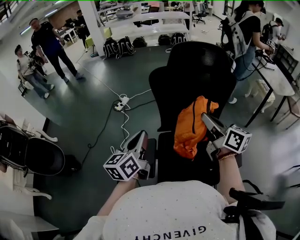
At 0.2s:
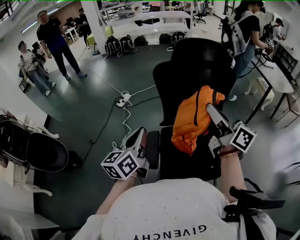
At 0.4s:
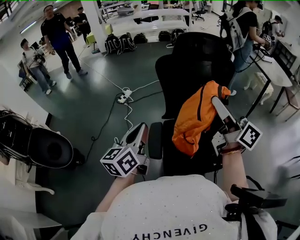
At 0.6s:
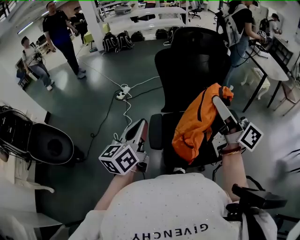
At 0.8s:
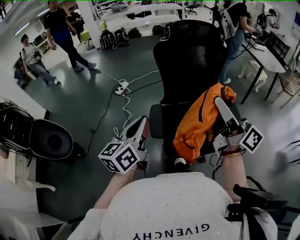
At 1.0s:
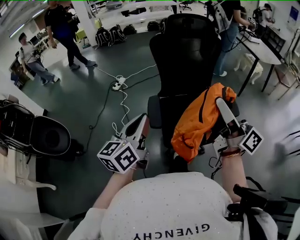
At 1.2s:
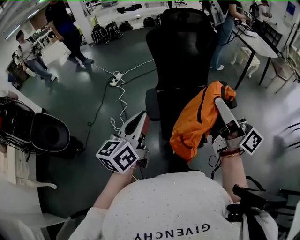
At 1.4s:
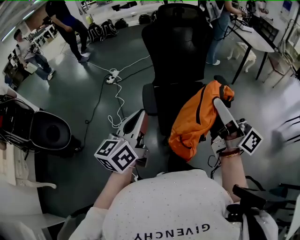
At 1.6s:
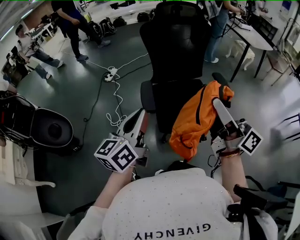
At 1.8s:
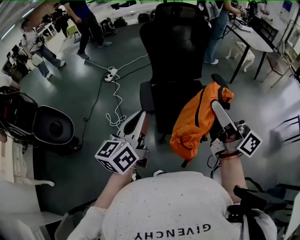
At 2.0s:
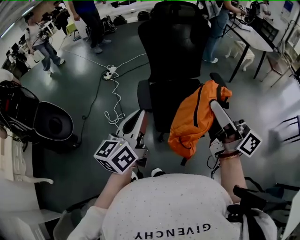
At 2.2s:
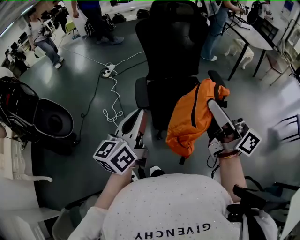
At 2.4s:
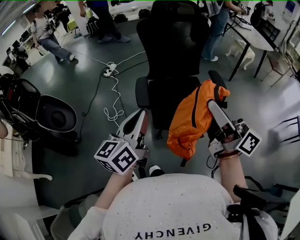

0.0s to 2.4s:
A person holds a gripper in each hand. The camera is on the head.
0.0s to 1.2s: The grippers both shift backward by roughly 30 cm. The right gripper swivels roughly 30 degrees.
1.2s to 2.4s: The right gripper goes approximately 5 cm backward. The left gripper is displaced backward and to the right by roughly 10 cm.

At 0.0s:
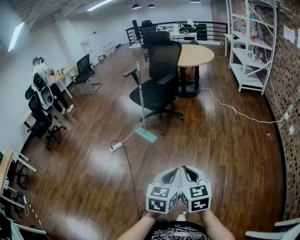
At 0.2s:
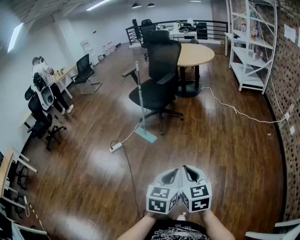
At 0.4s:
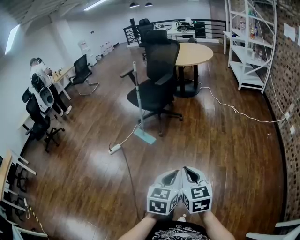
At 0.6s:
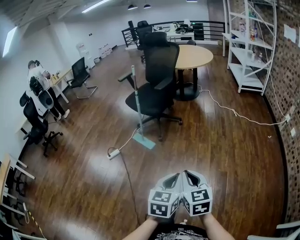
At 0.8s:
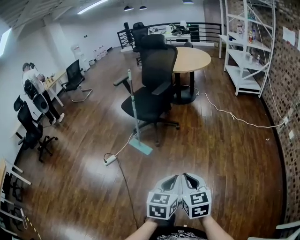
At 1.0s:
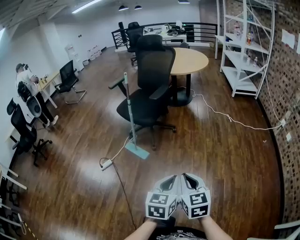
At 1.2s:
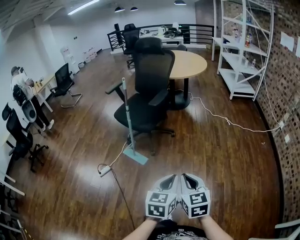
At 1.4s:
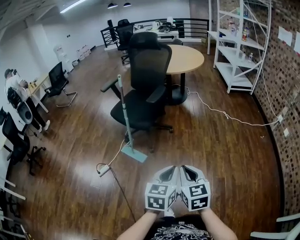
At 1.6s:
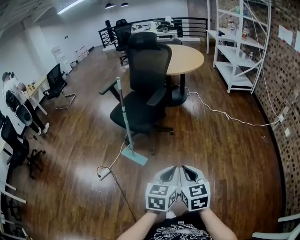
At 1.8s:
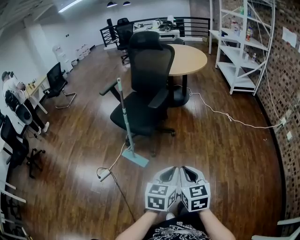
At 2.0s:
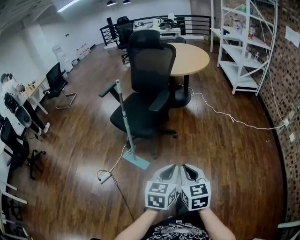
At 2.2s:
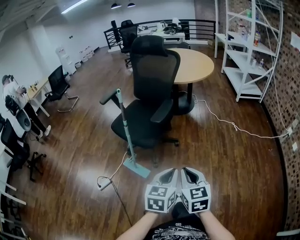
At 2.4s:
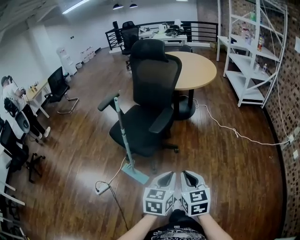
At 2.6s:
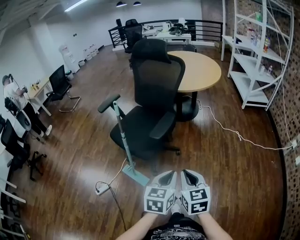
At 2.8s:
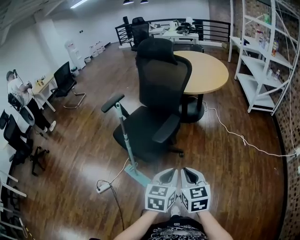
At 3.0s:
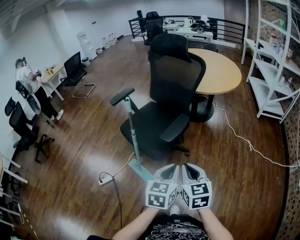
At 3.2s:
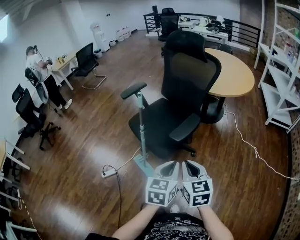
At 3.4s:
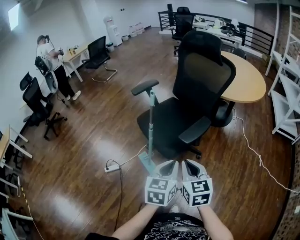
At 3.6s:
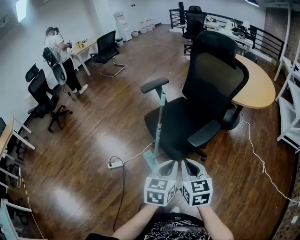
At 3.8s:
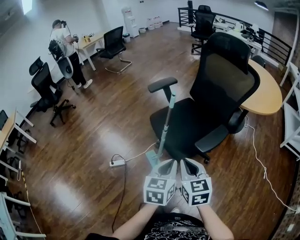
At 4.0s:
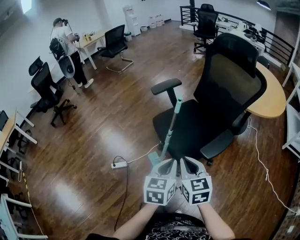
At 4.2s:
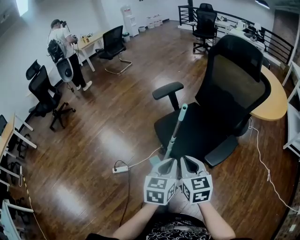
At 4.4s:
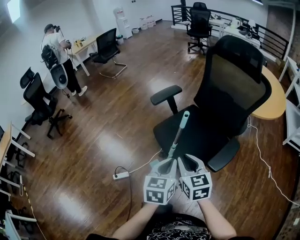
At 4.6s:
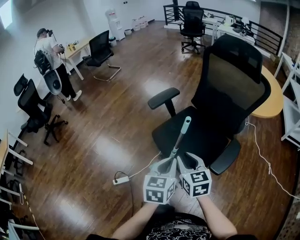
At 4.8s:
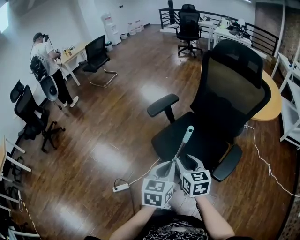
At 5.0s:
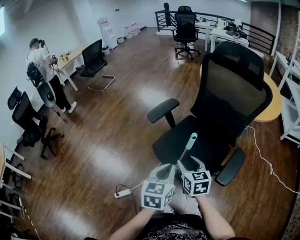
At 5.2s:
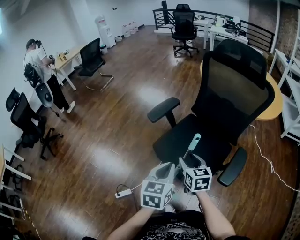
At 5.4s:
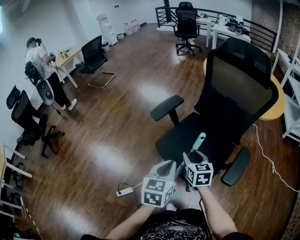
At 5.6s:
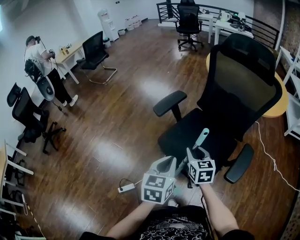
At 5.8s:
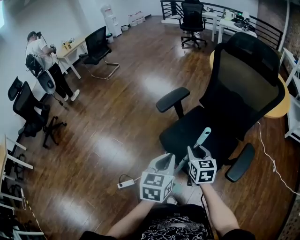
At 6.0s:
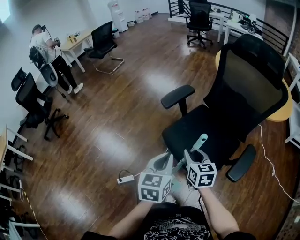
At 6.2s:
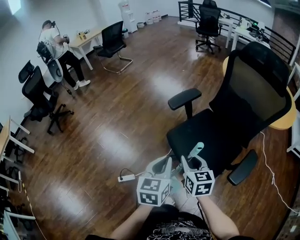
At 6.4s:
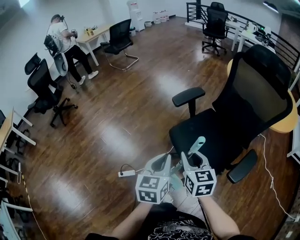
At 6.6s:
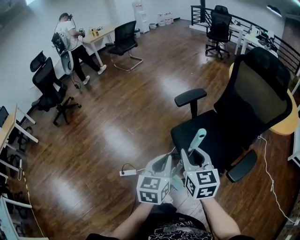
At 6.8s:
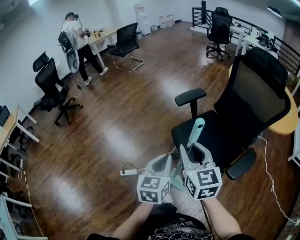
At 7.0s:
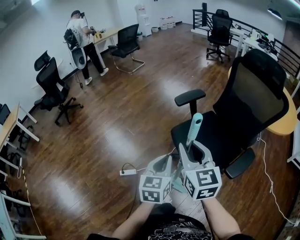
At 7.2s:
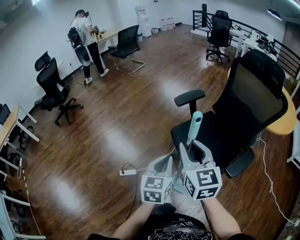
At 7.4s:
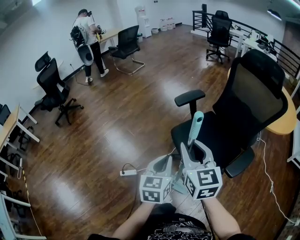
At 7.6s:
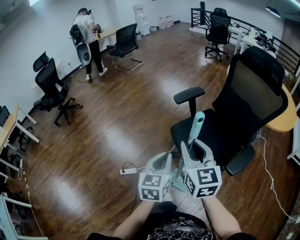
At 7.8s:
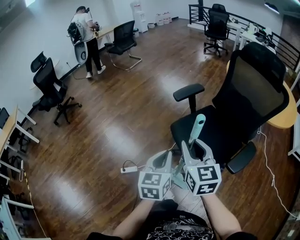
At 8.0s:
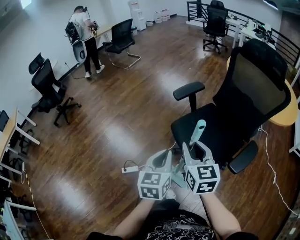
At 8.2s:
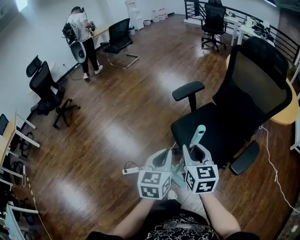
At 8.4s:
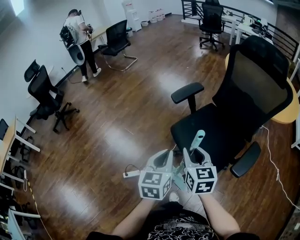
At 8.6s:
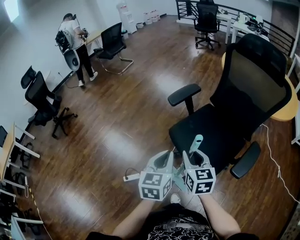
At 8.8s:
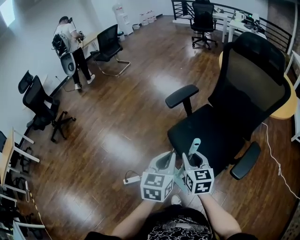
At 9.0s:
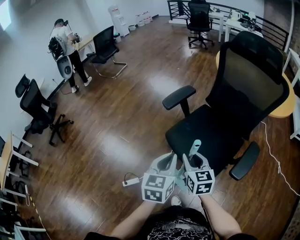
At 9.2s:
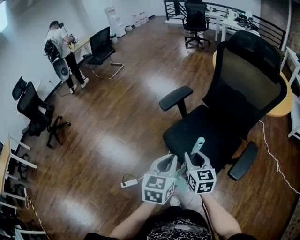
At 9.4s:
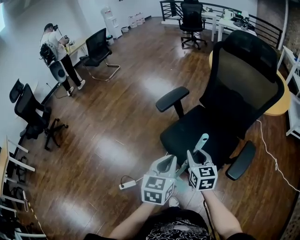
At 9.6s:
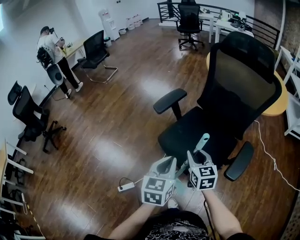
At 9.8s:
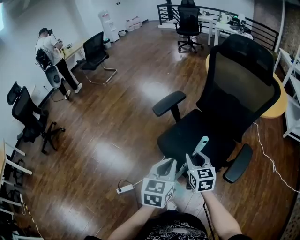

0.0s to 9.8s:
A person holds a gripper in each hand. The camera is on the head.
0.0s to 1.4s: Both grippers move forward, some 25 cm.
1.4s to 2.8s: The grippers both shift forward by roughly 30 cm.
2.8s to 4.2s: The left gripper shifts by some 25 cm, and turns by roughly 30 degrees, while the right gripper shifts by approximately 30 cm, and swivels about 30 degrees.
4.2s to 5.6s: The left gripper is displaced forward and to the left by about 15 cm, while the right gripper moves forward and downward, some 20 cm, and opens its fingers.
5.6s to 7.0s: The left gripper heads backward and to the left, covering about 10 cm, and swivels roughly 20 degrees. Meanwhile the right gripper goes approximately 25 cm upward, backward and to the left, and changes its angle by approximately 30 degrees.
7.0s to 8.4s: The right gripper is displaced downward by approximately 10 cm. The left gripper moves forward, about 5 cm.
8.4s to 9.8s: The left gripper shifts approximately 5 cm to the right, while the right gripper heads downward, to the right and forward, covering some 10 cm.

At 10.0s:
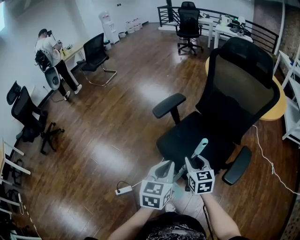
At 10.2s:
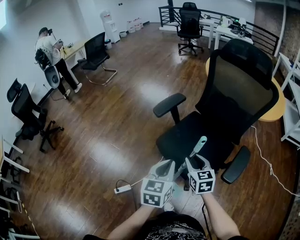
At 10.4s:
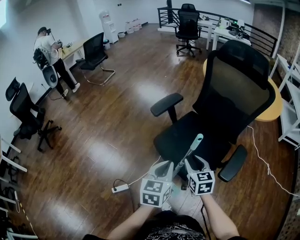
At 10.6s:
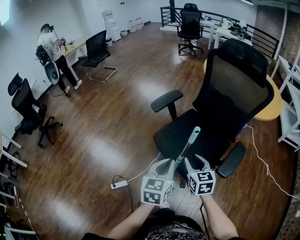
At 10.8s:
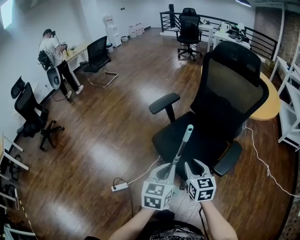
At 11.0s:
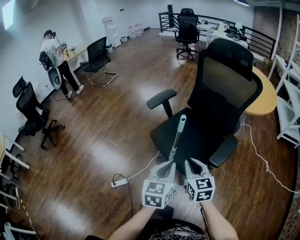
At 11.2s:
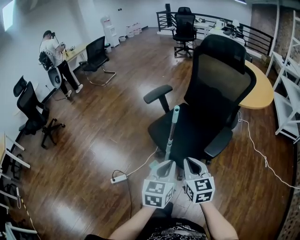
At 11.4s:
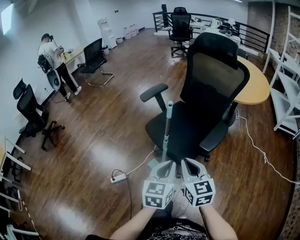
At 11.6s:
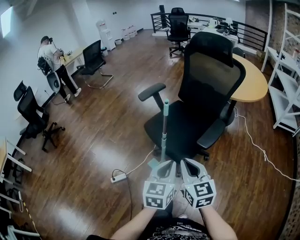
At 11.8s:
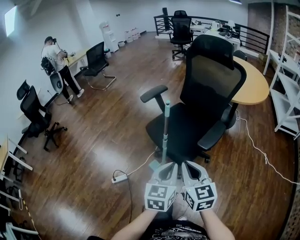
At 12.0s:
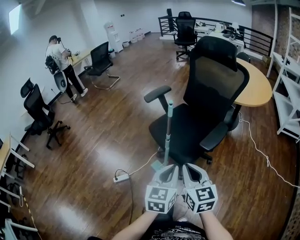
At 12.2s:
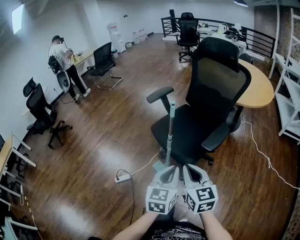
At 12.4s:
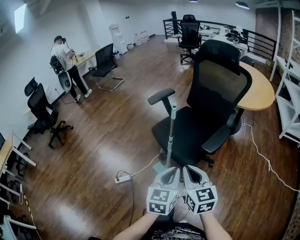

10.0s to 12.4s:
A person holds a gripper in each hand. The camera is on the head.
10.0s to 11.2s: The left gripper moves backward and to the right, about 15 cm. Meanwhile the right gripper travels backward and upward by about 20 cm, and closes.
11.2s to 12.4s: Both grippers move backward, approximately 10 cm.

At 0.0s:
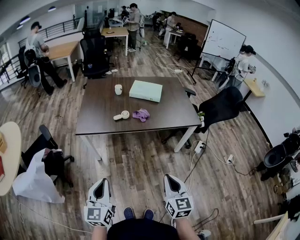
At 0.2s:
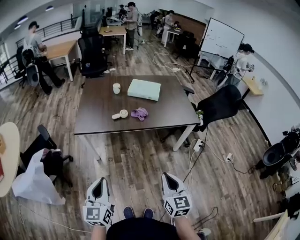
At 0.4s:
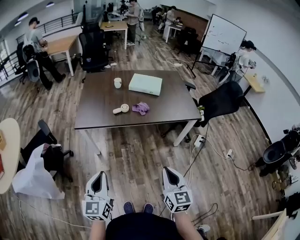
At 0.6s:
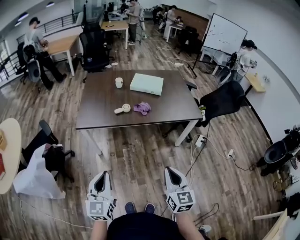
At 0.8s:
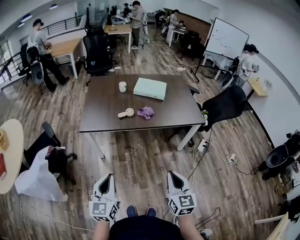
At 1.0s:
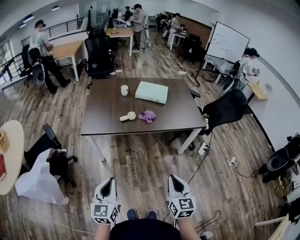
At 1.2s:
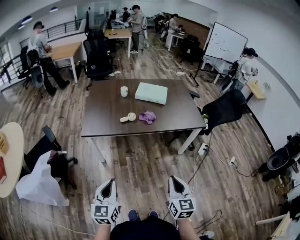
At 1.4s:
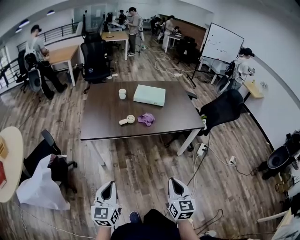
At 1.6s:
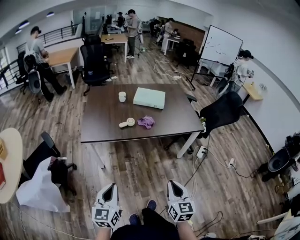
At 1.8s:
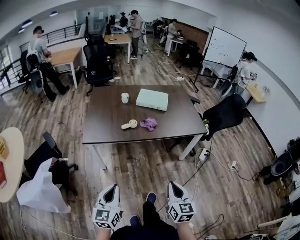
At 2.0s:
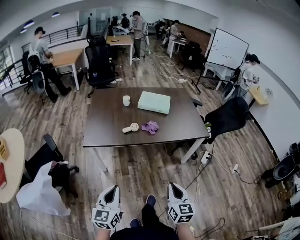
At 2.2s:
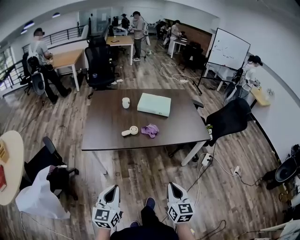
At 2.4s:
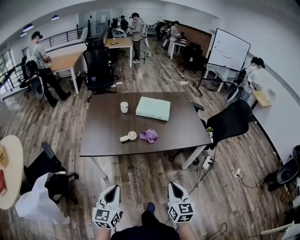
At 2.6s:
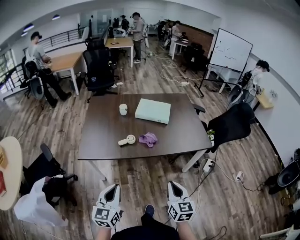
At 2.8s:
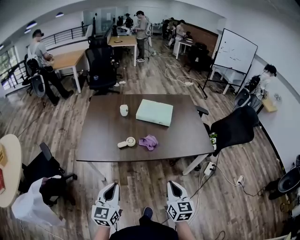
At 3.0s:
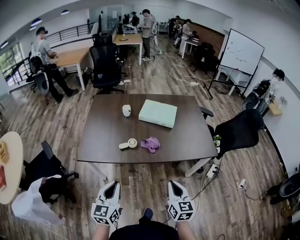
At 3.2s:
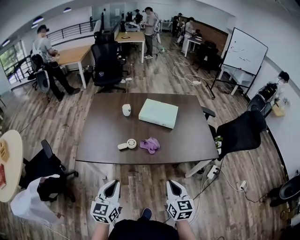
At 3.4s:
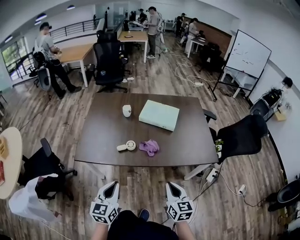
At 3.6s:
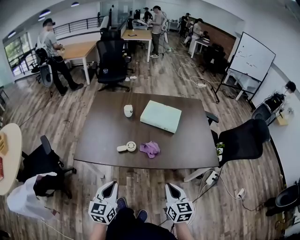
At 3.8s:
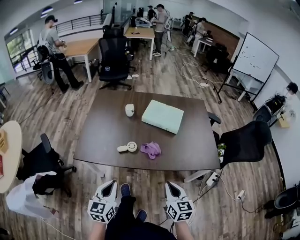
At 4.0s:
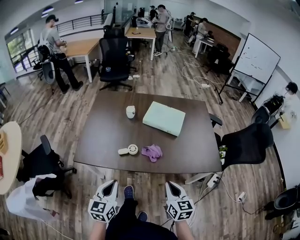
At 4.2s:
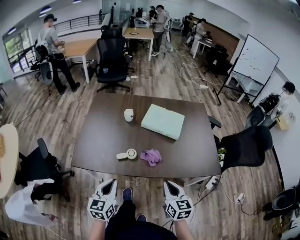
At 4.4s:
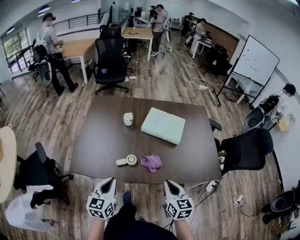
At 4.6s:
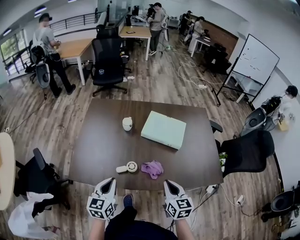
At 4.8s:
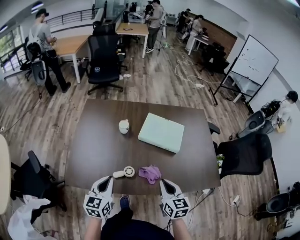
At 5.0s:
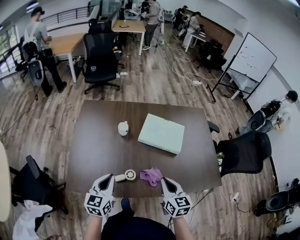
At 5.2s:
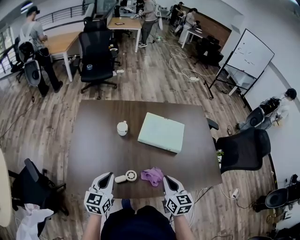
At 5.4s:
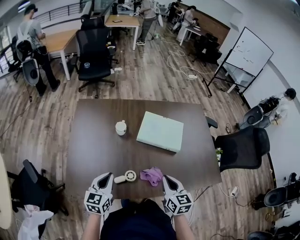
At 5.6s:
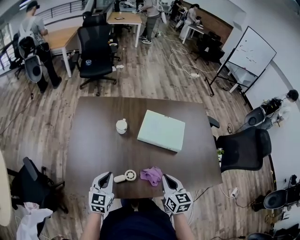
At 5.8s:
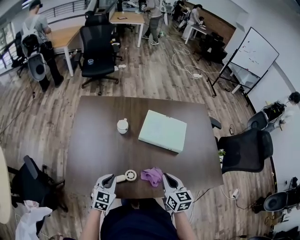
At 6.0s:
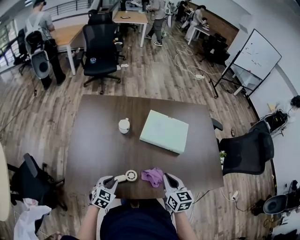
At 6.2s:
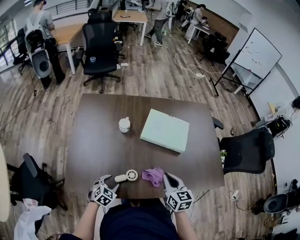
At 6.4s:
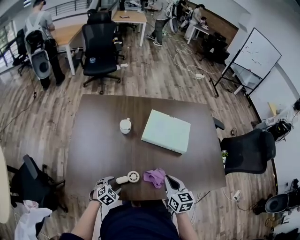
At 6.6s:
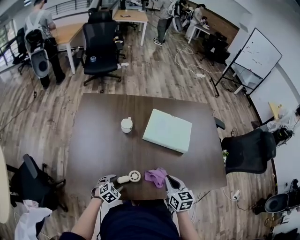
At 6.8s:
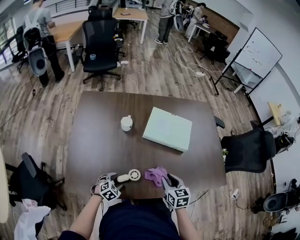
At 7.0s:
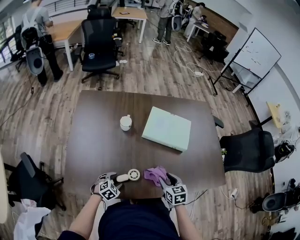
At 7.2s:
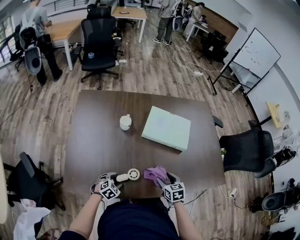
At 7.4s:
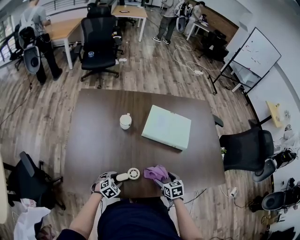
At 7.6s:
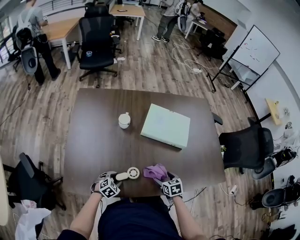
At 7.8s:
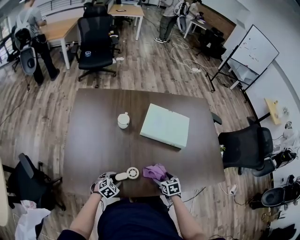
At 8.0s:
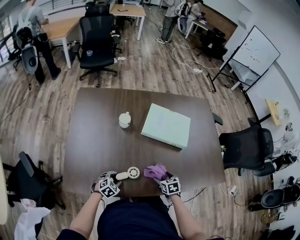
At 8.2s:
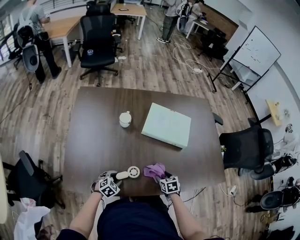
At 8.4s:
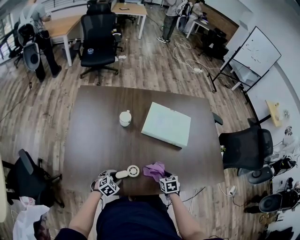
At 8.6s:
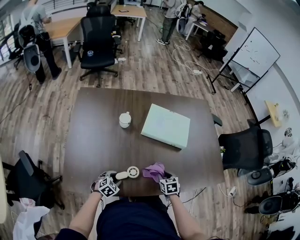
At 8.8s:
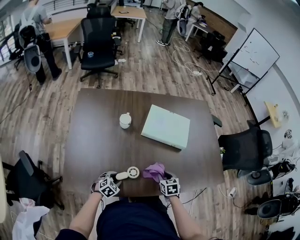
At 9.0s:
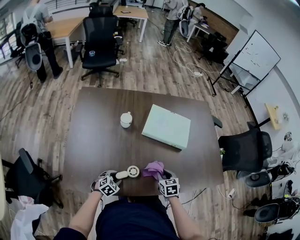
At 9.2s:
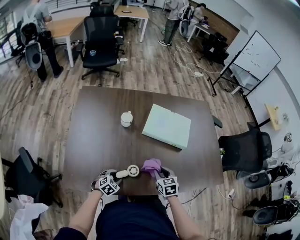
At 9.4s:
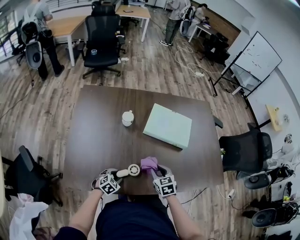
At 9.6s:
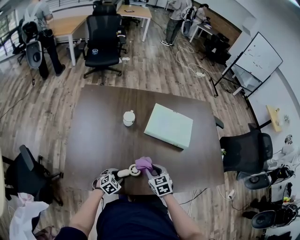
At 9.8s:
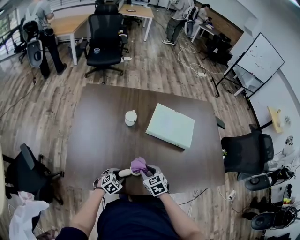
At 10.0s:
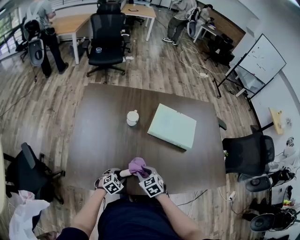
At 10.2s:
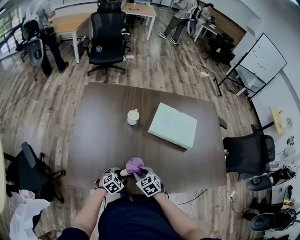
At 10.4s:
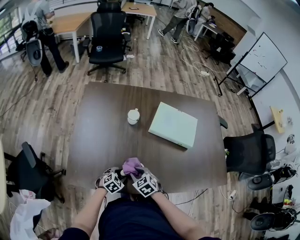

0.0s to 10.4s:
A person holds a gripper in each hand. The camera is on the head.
0.0s to 1.4s: The left gripper changes place by some 5 cm.
1.4s to 3.0s: The grippers both shift forward by about 25 cm.
3.0s to 4.4s: Both grippers travel together forward, about 20 cm.
4.4s to 6.0s: The left gripper goes approximately 25 cm downward and forward, and turns by approximately 40 degrees. Meanwhile the right gripper is displaced forward by approximately 20 cm.
6.0s to 7.4s: The grippers both shift downward by approximately 15 cm. The right gripper swivels some 30 degrees, and opens up. Meanwhile the left gripper changes its angle by roughly 30 degrees, and opens.
7.4s to 9.0s: The right gripper closes.
9.0s to 10.4s: The right gripper travels to the left by roughly 20 cm, and changes its angle by approximately 30 degrees.
